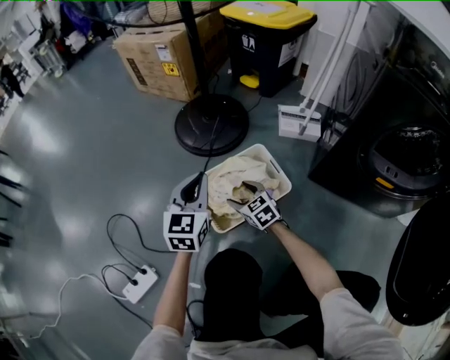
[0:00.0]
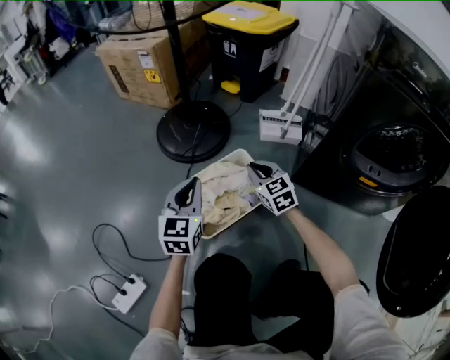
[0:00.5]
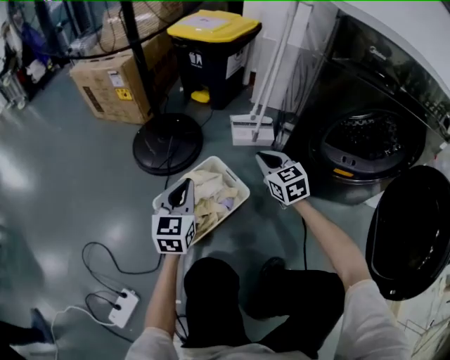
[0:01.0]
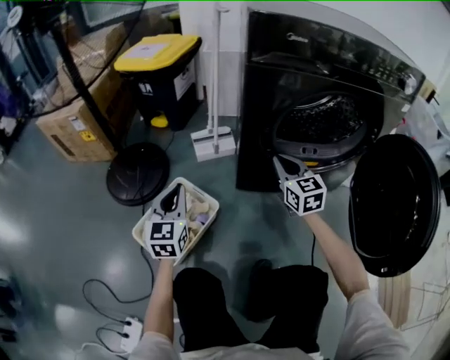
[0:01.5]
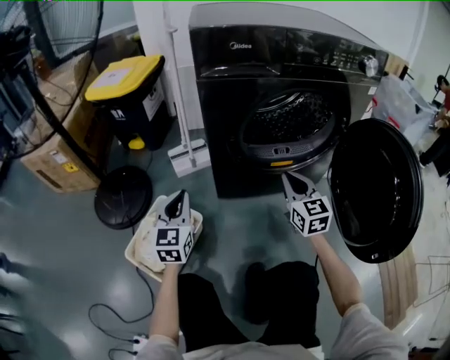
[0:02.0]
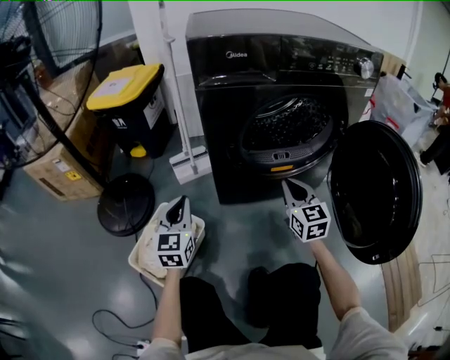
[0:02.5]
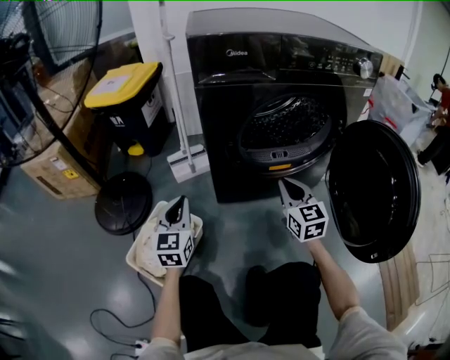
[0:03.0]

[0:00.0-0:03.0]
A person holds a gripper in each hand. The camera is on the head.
0.0 to 1.5 s: The left gripper shifts by about 20 cm, and turns by some 20 degrees. The right gripper ends up some 50 cm from where it was, rotates some 50 degrees, and closes.
1.5 to 3.0 s: The left gripper travels to the right by roughly 10 cm. The right gripper shifts some 15 cm to the right and backward.

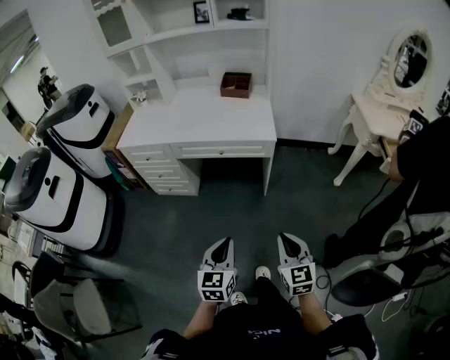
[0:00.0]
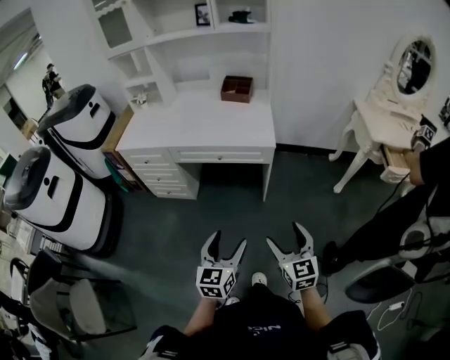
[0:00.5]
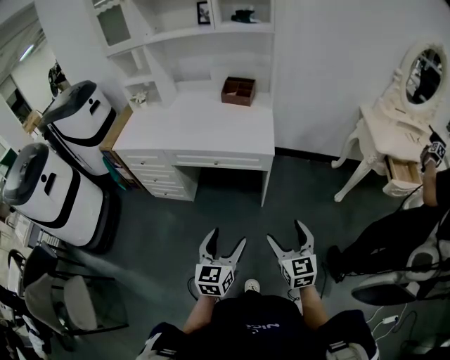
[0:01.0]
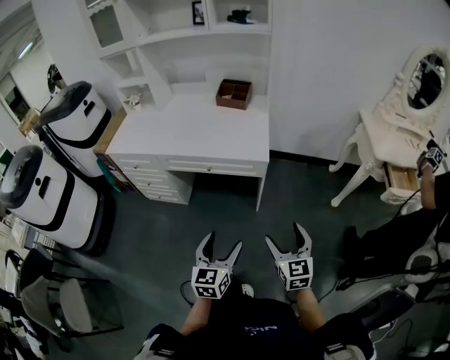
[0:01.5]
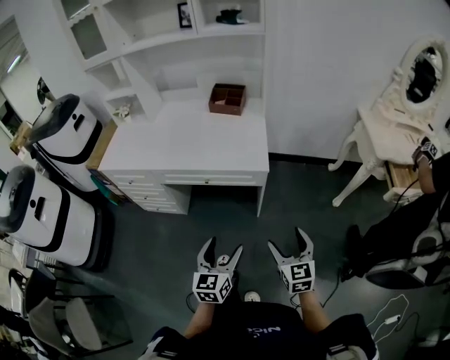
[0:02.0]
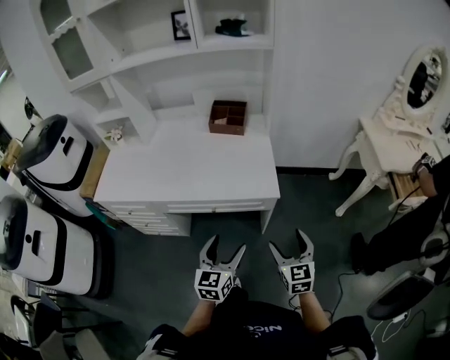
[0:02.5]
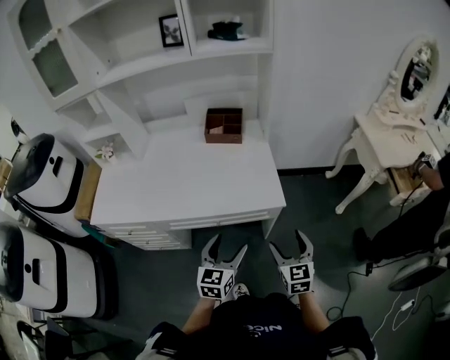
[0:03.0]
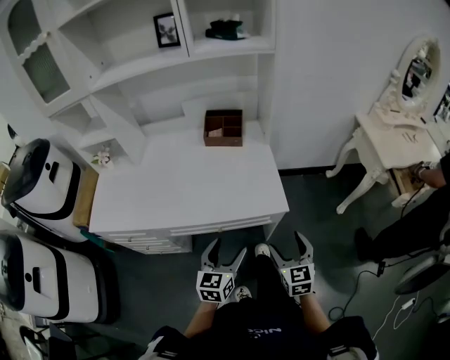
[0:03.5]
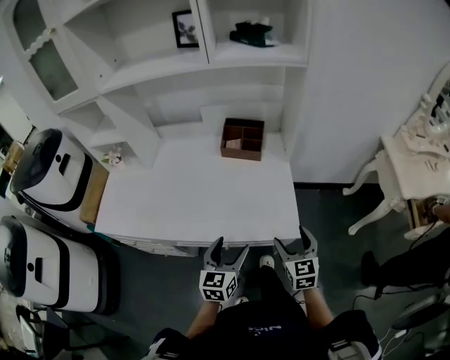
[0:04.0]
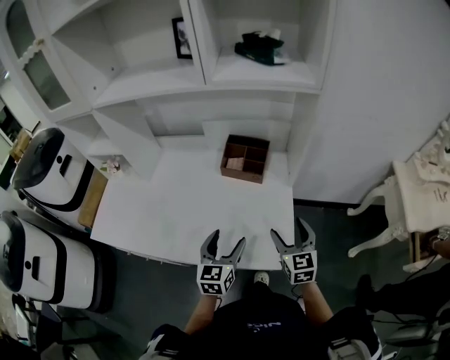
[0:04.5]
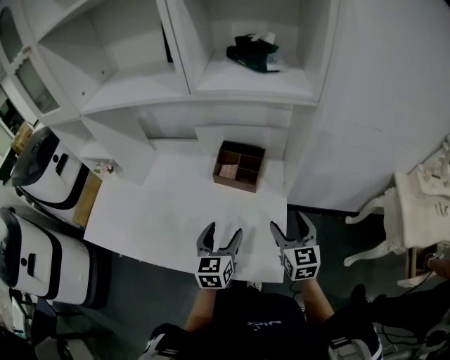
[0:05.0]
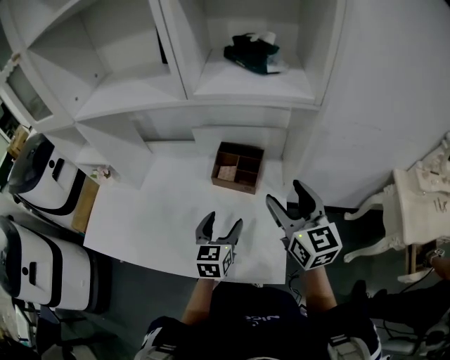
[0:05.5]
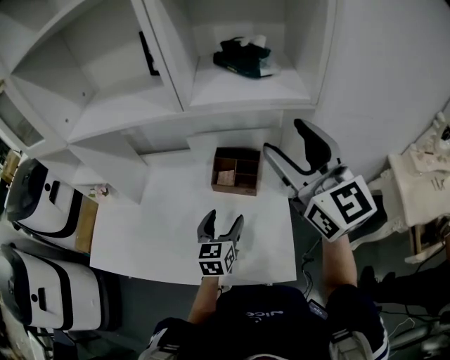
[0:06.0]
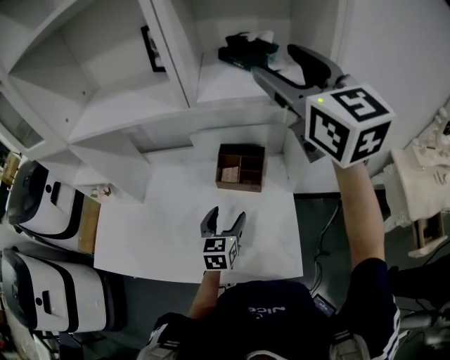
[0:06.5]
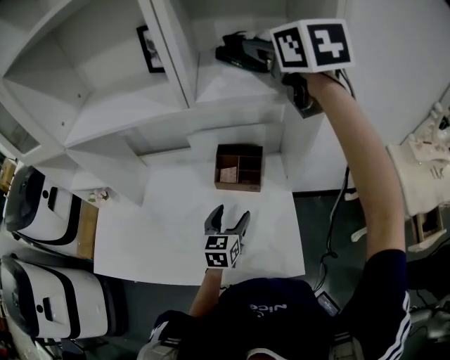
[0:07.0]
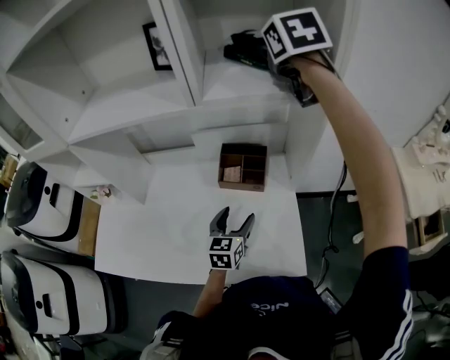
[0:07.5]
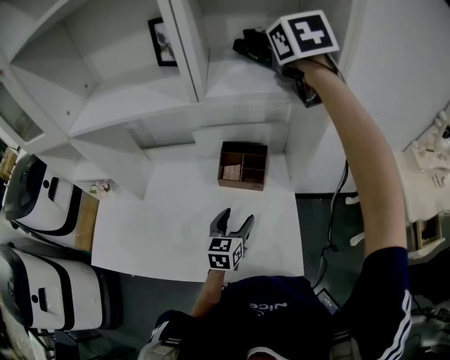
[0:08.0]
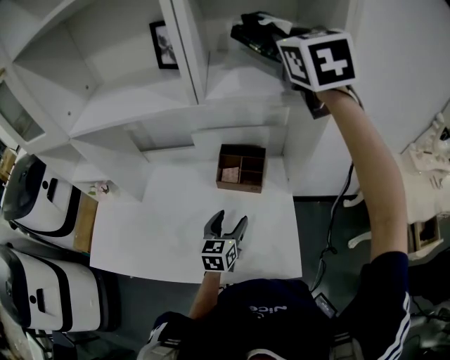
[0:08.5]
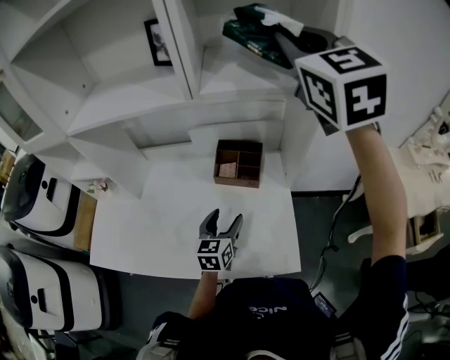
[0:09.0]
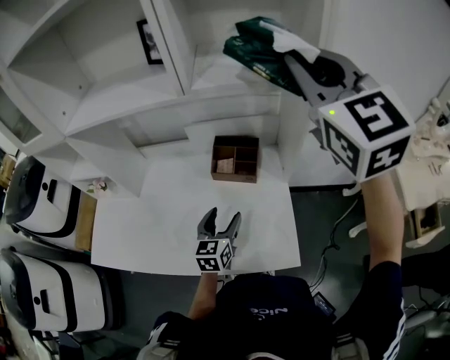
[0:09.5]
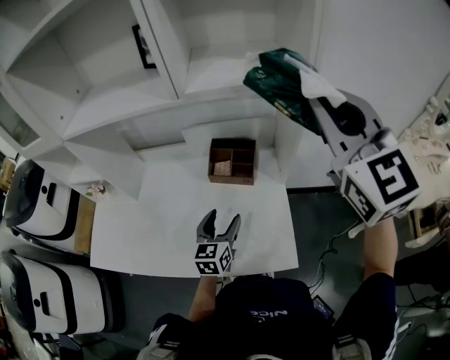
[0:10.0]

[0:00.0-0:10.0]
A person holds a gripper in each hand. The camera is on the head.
0.0 to 2.0 s: The right gripper shifts approximately 20 cm forward and to the right, and opens, while the left gripper travels forward by some 20 cm, and opens.
2.0 to 4.0 s: The left gripper is displaced forward by some 30 cm; the right gripper moves forward and to the left, about 35 cm.
4.0 to 6.0 s: The right gripper heads upward and forward, covering some 50 cm, and points its fingers approximately 30 degrees further upward. The left gripper heads forward, covering about 25 cm.
6.0 to 8.0 s: The right gripper shifts roughly 20 cm forward, tilts its fingers about 30 degrees downward, and closes its fingers.
8.0 to 10.0 s: The right gripper shifts roughly 25 cm backward, and changes its angle by approximately 30 degrees.

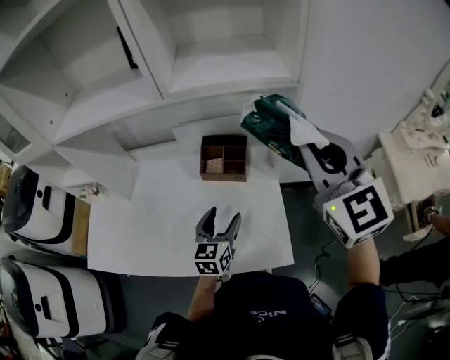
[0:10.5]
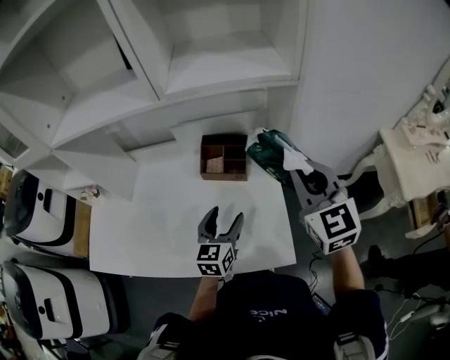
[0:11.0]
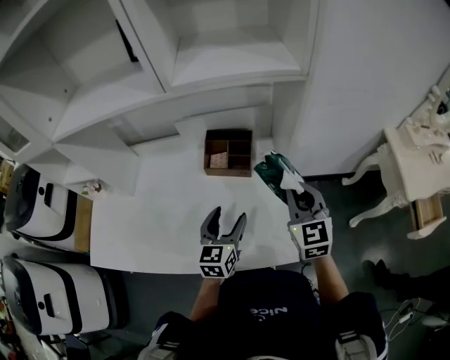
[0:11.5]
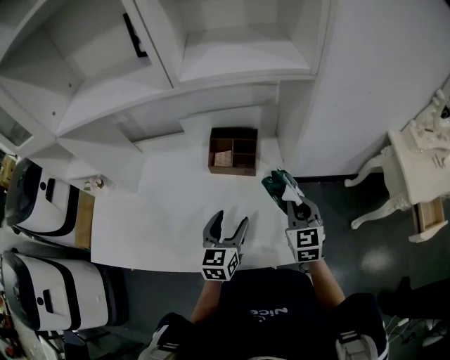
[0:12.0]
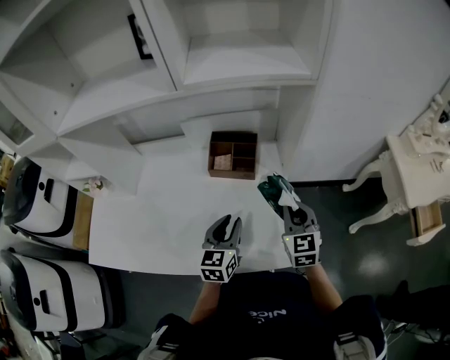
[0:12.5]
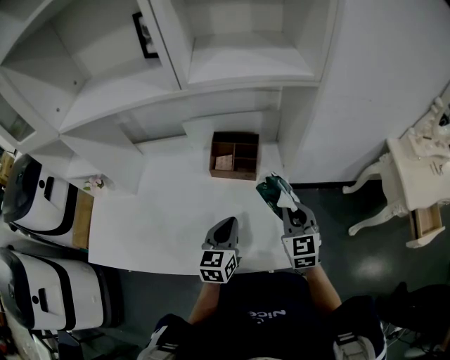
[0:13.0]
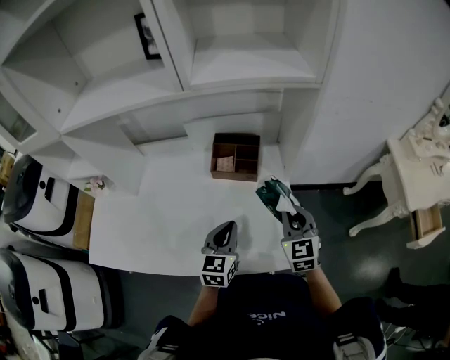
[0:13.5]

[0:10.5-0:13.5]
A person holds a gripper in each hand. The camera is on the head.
10.5 to 12.0 s: The right gripper heads downward, covering about 30 cm, and turns by approximately 30 degrees.
12.0 to 13.5 s: The left gripper closes.

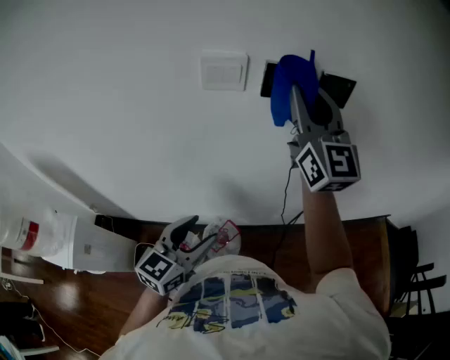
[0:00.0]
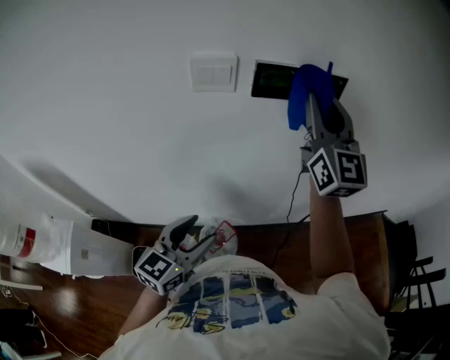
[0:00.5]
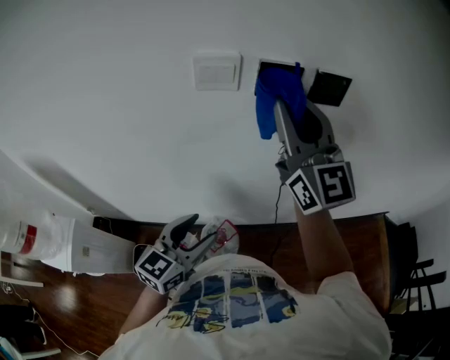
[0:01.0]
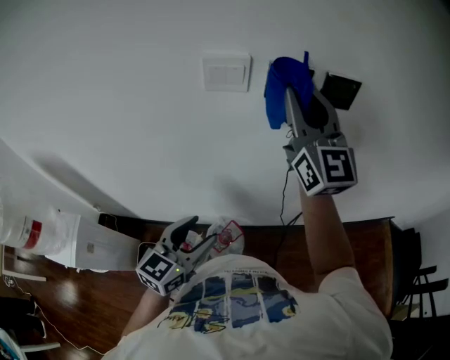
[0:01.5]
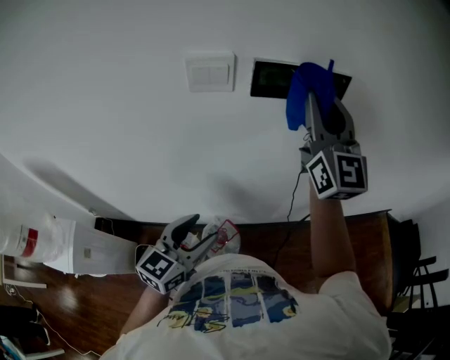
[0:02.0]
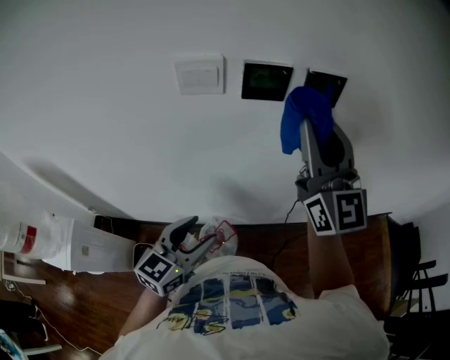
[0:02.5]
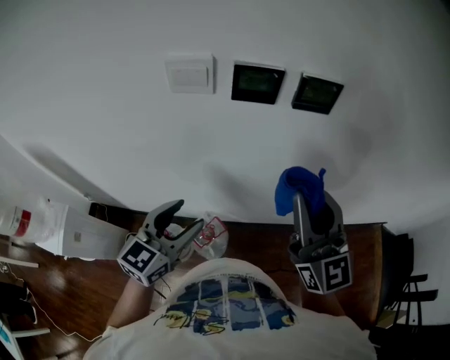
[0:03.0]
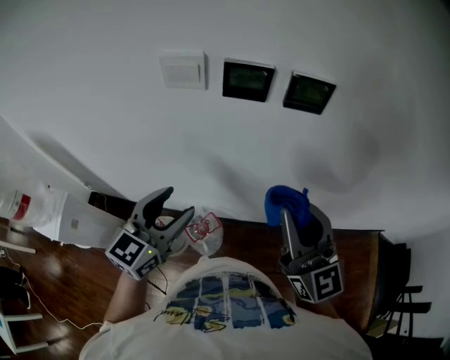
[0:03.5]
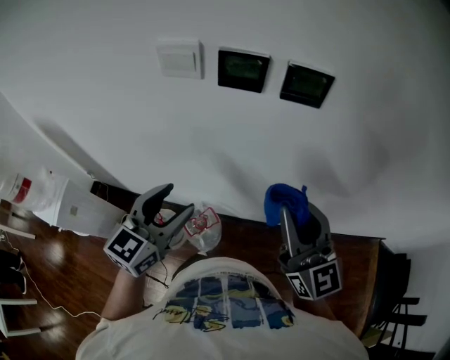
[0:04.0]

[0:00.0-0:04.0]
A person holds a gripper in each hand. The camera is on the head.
0.0 to 2.0 s: The right gripper moves left and right over roughly 10 cm, changing direction 2 times.
2.0 to 4.0 s: The right gripper moves backward, downward and to the right, about 20 cm, and rotates roughly 30 degrees. Meanwhile the left gripper heads upward and to the right, covering about 10 cm.

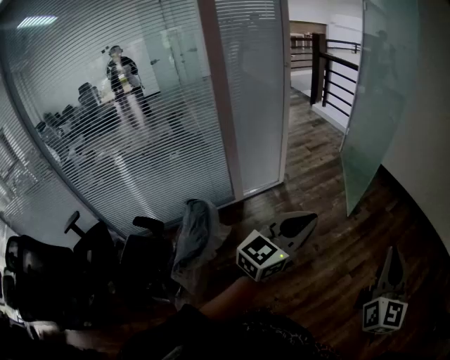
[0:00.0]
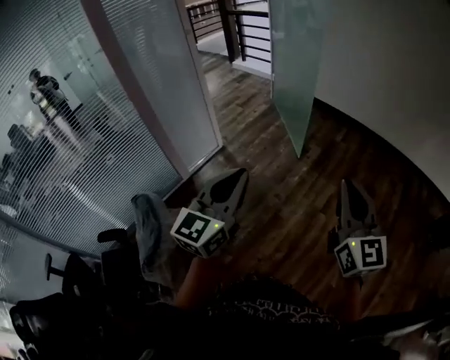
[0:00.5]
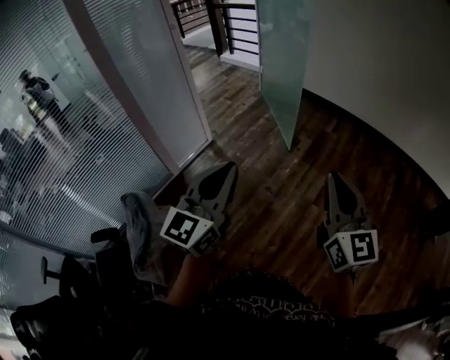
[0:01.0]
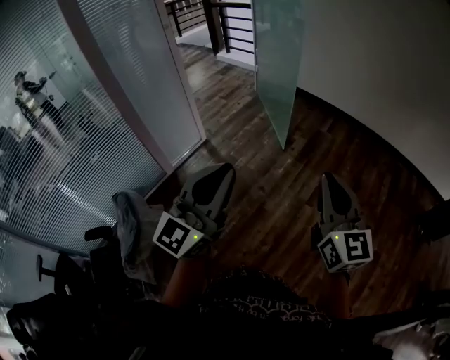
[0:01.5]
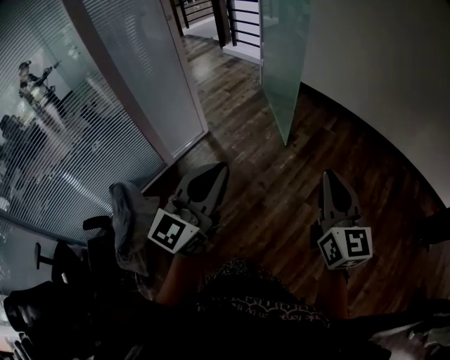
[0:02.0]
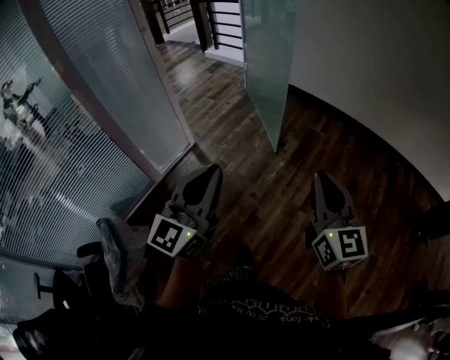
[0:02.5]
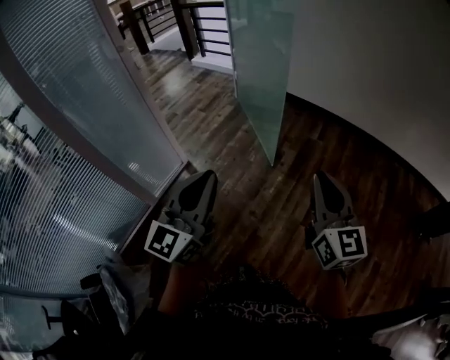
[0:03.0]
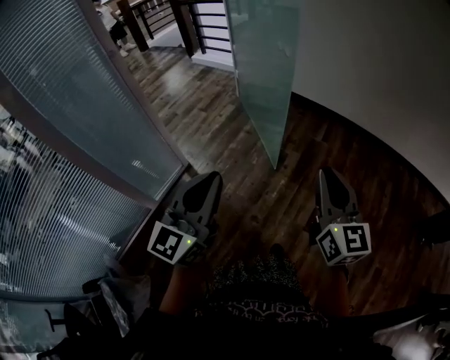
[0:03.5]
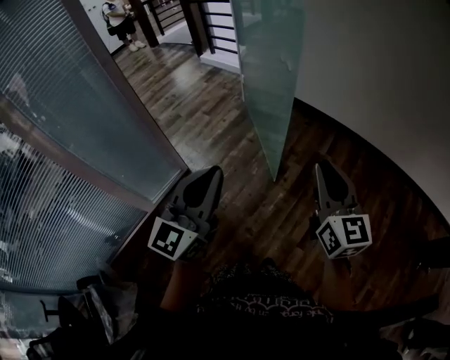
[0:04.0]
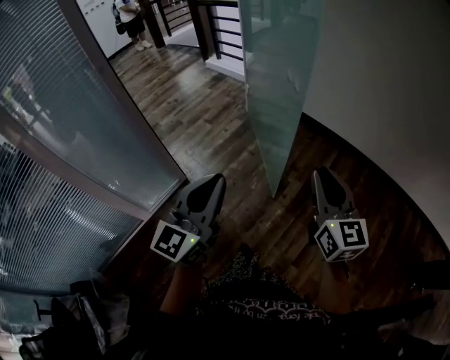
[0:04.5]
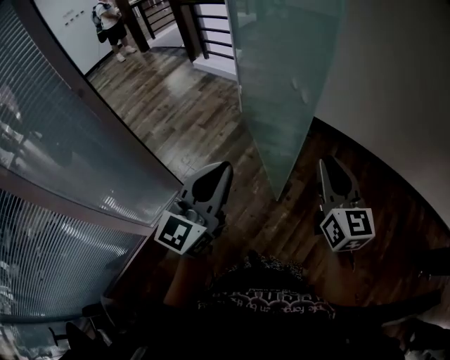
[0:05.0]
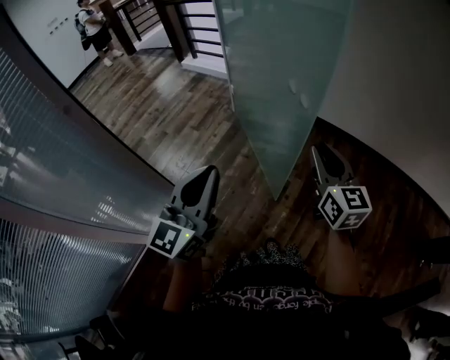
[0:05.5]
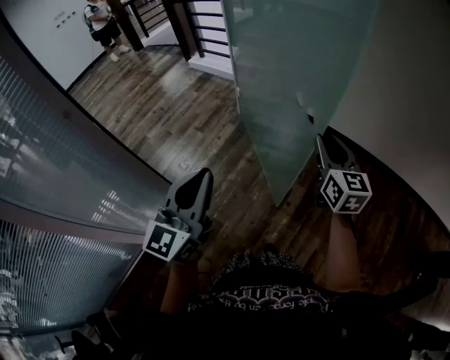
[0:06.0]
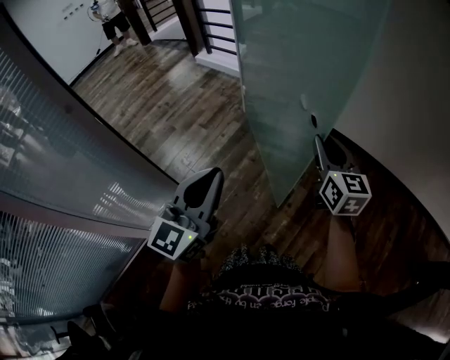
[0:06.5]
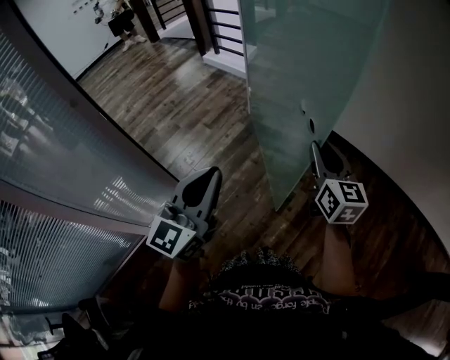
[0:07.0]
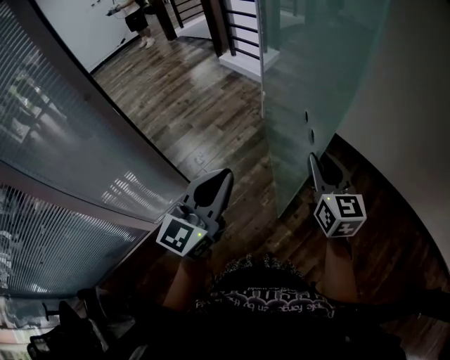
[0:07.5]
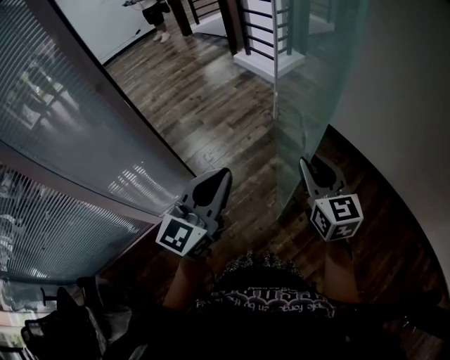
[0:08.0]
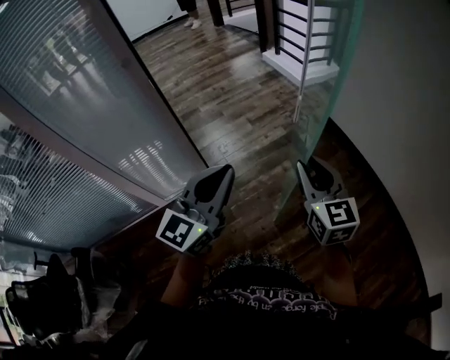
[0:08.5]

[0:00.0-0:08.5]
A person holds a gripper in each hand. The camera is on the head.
0.0 to 2.0 s: The left gripper shifts by about 5 cm; the right gripper shifts some 10 cm forward.
2.0 to 4.0 s: The two grippers travel together, forward, approximately 40 cm.
4.0 to 6.5 s: The grippers both shift forward by some 35 cm.
6.5 to 8.5 s: The right gripper goes approximately 15 cm to the left, and changes its angle by about 30 degrees.
